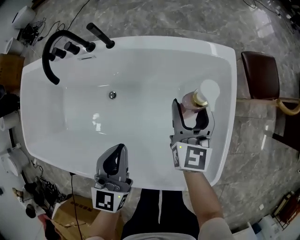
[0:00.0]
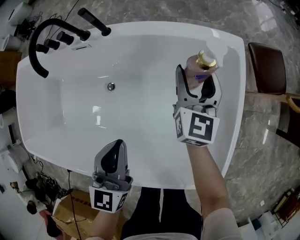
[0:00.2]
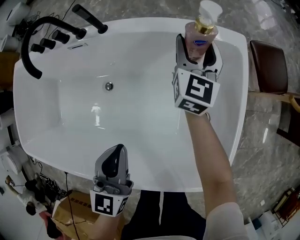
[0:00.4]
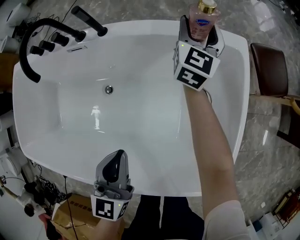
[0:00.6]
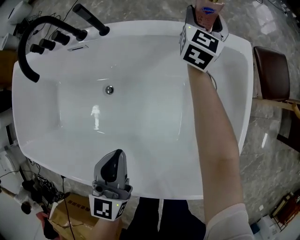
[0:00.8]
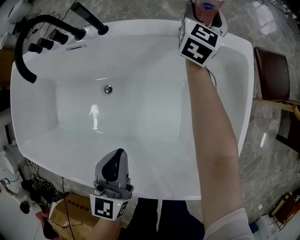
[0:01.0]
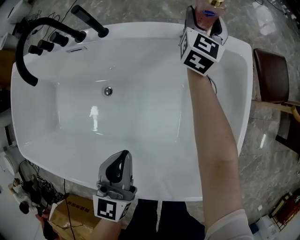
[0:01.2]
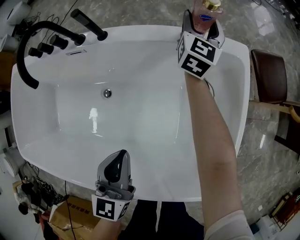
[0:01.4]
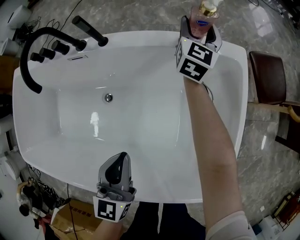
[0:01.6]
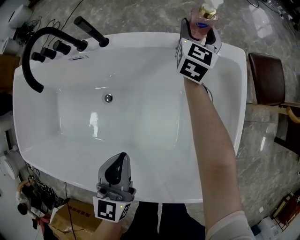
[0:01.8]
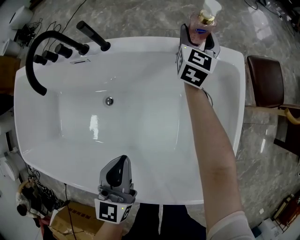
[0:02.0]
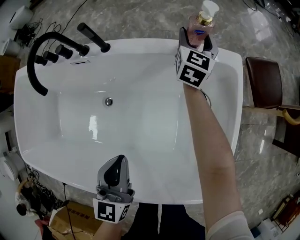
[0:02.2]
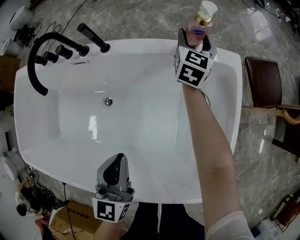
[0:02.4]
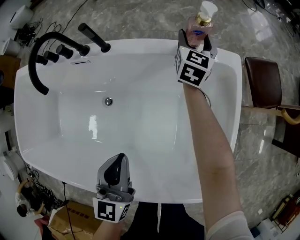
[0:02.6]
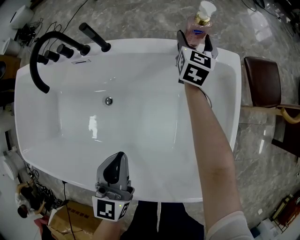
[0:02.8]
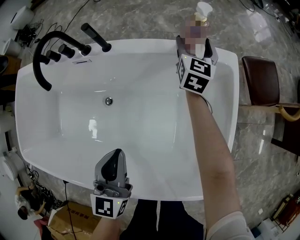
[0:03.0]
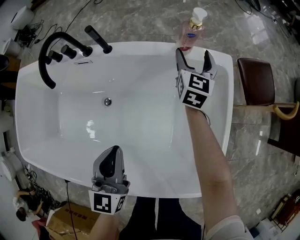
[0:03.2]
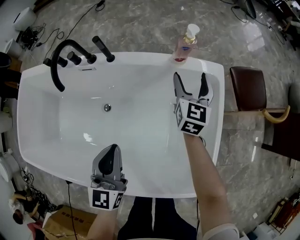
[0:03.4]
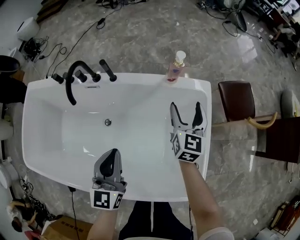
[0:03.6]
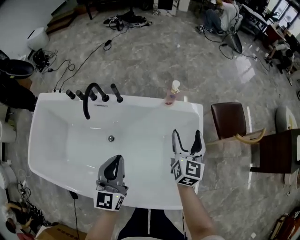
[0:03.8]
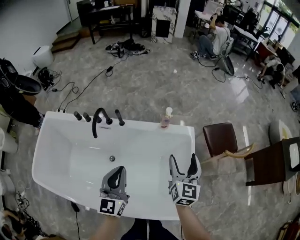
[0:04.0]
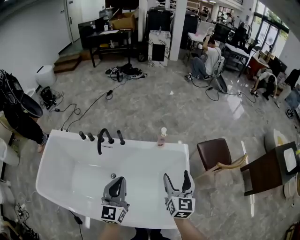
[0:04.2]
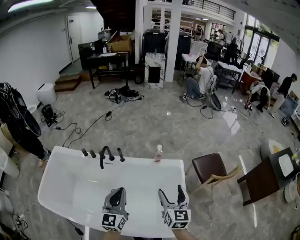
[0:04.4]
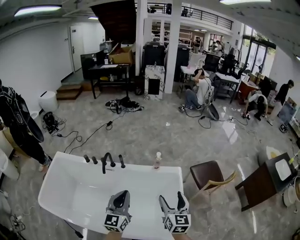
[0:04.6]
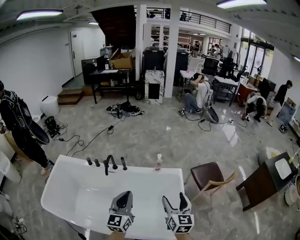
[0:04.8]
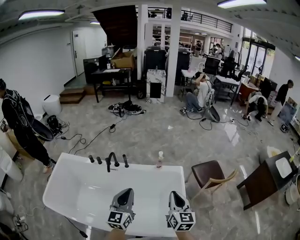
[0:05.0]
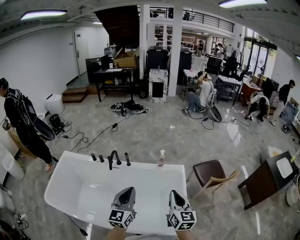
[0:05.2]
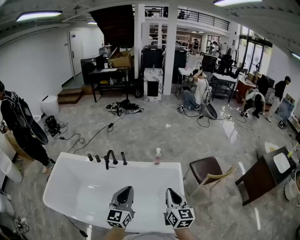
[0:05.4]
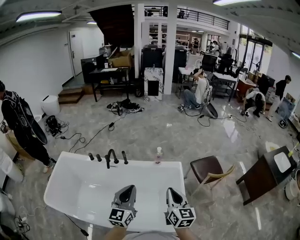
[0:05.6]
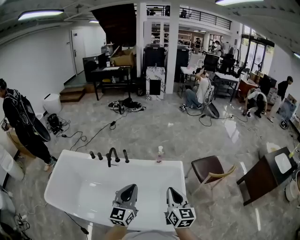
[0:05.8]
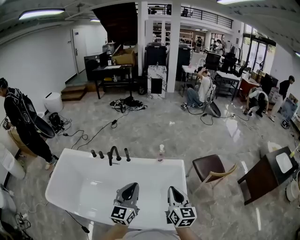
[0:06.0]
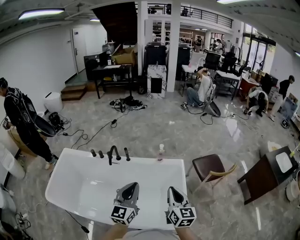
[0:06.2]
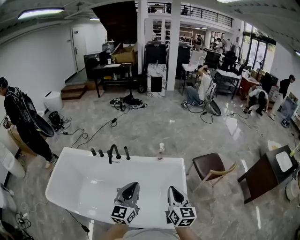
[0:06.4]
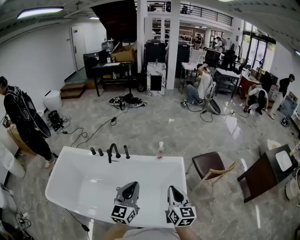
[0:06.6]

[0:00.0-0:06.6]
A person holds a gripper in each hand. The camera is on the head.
0:00.0 to 0:01.6: The right gripper is displaced forward by approximately 25 cm; the left gripper travels downward by approximately 5 cm.
0:01.6 to 0:03.2: The right gripper shifts roughly 5 cm backward.
0:03.2 to 0:05.0: The left gripper is displaced upward by some 40 cm; the right gripper goes about 60 cm upward and backward, and closes up.
0:05.0 to 0:06.6: The grippers make only small movements.

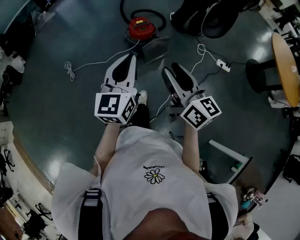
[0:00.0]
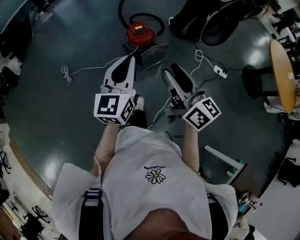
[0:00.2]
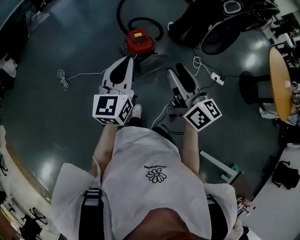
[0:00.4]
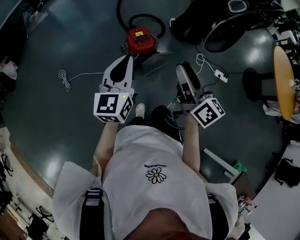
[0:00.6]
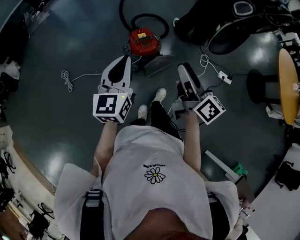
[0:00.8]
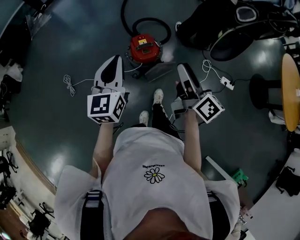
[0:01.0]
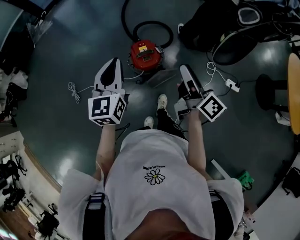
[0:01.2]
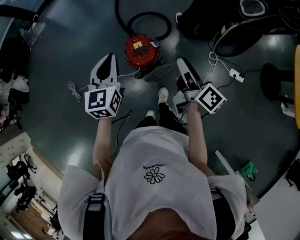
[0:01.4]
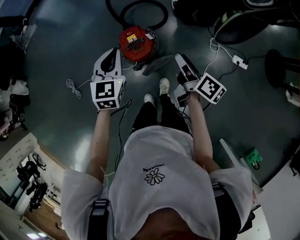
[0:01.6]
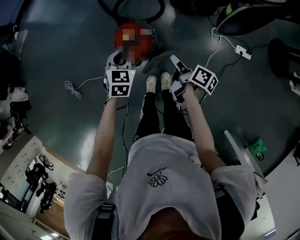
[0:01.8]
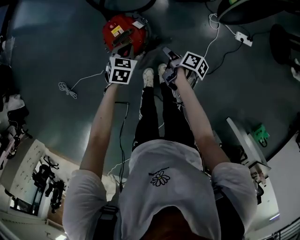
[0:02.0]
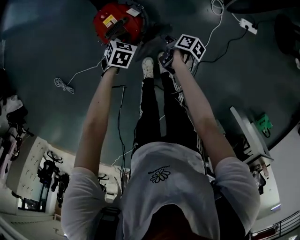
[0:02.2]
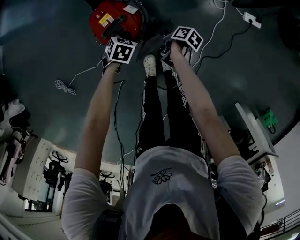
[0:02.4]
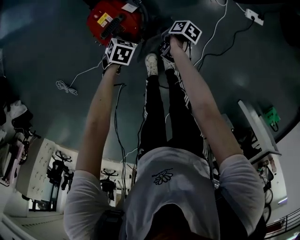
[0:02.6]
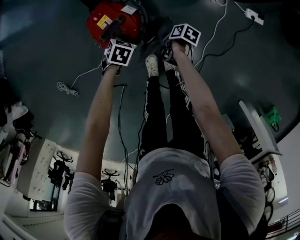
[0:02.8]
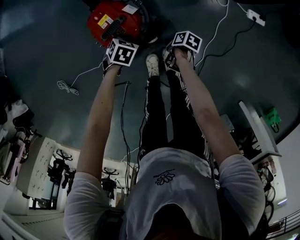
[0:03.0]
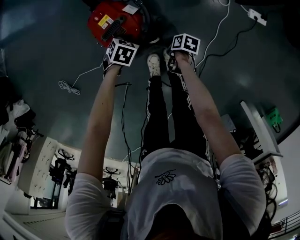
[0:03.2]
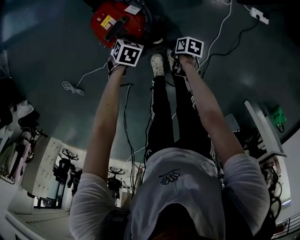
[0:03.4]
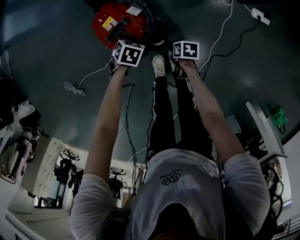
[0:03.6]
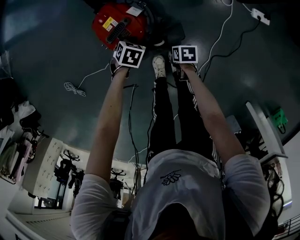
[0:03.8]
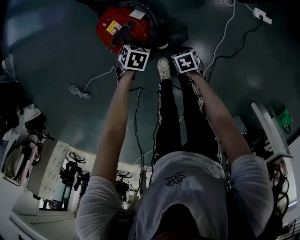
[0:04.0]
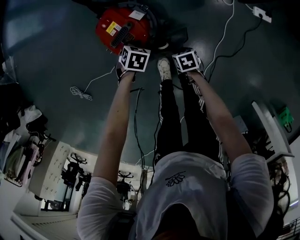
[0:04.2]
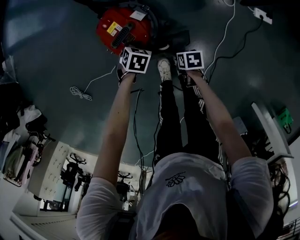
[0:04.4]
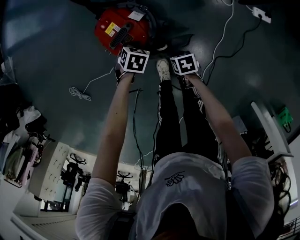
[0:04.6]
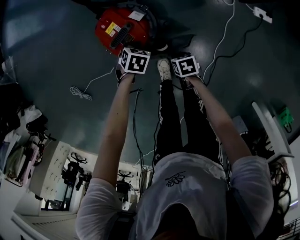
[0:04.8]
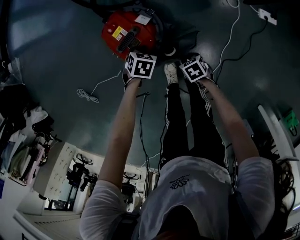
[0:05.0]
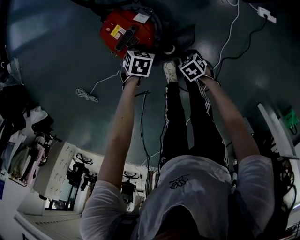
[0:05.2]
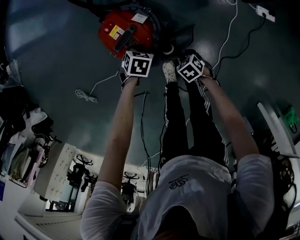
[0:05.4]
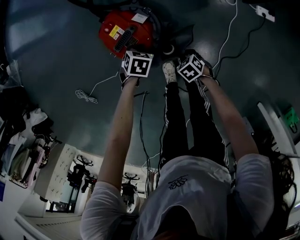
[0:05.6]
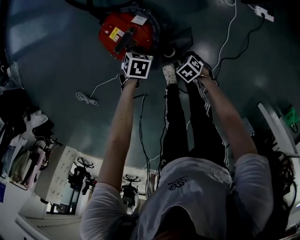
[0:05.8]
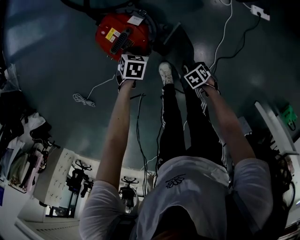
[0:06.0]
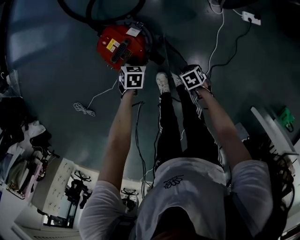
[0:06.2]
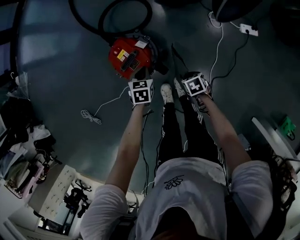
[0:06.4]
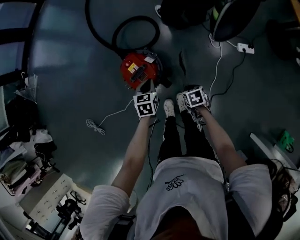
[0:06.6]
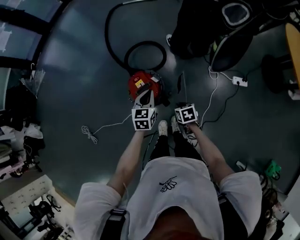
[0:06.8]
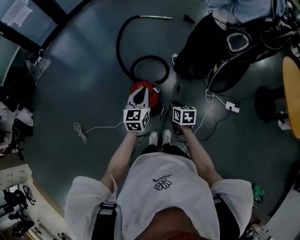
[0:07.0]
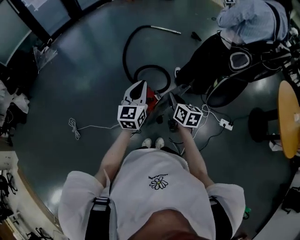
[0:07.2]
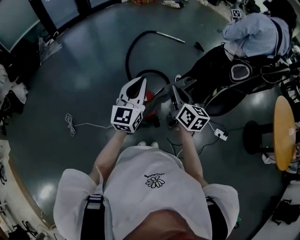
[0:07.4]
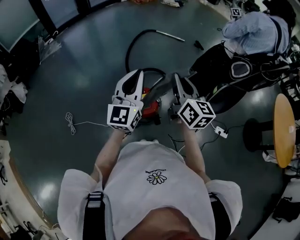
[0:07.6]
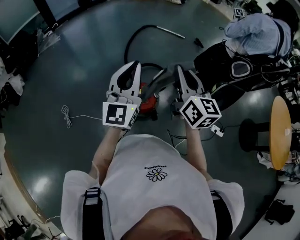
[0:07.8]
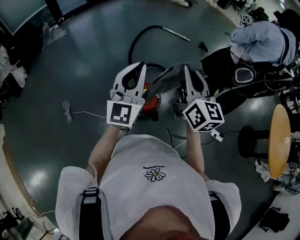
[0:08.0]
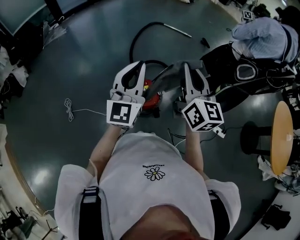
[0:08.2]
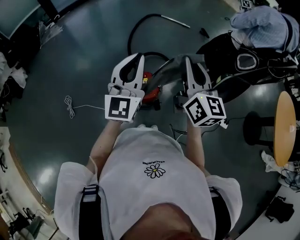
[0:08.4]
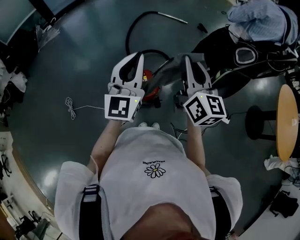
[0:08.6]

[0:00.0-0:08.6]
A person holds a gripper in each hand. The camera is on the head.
0:00.0 to 0:01.4: The pair of grippers is taken forward, approximately 40 cm. The right gripper changes its angle by some 40 degrees.
0:01.4 to 0:02.8: The two grippers go about 50 cm downward. The left gripper tilts its fingers approximately 60 degrees downward. The right gripper angles its fingers downward, by roughly 60 degrees, and closes its fingers.
0:02.8 to 0:04.4: The right gripper shifts by some 5 cm, and turns by some 30 degrees.
0:04.4 to 0:05.8: The right gripper rotates around the line of its fingers by about 40 degrees, counterclockwise from behind.
0:05.8 to 0:07.2: Both grippers travel together upward, some 50 cm. The left gripper tilts its fingers roughly 70 degrees upward. The right gripper tips its fingers upward by approximately 50 degrees.
0:07.2 to 0:08.6: The right gripper travels upward by approximately 25 cm, and rotates approximately 30 degrees. Meanwhile the left gripper moves upward, about 15 cm, and turns by some 20 degrees.

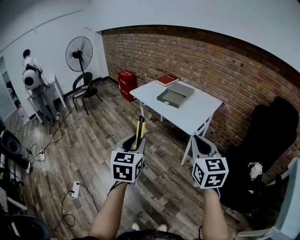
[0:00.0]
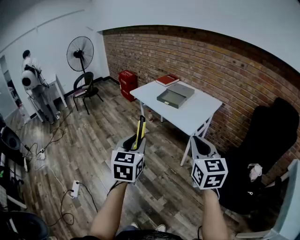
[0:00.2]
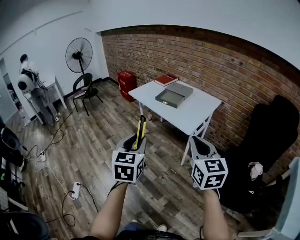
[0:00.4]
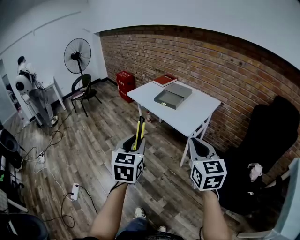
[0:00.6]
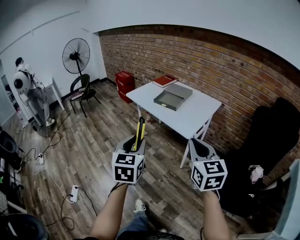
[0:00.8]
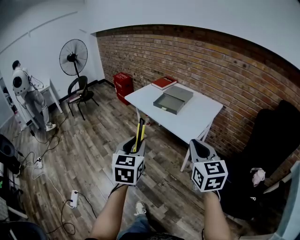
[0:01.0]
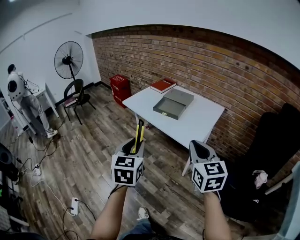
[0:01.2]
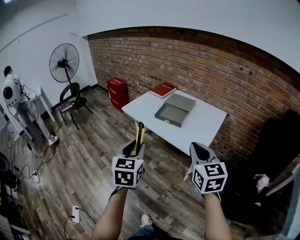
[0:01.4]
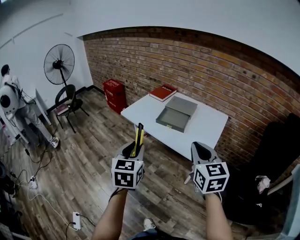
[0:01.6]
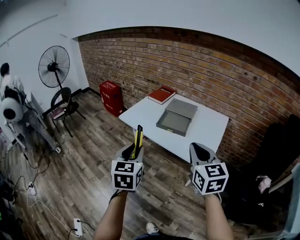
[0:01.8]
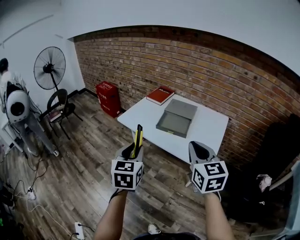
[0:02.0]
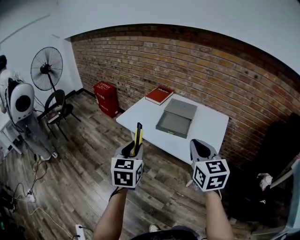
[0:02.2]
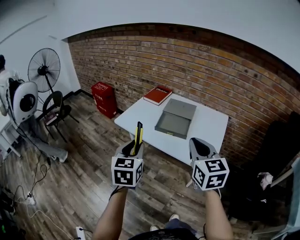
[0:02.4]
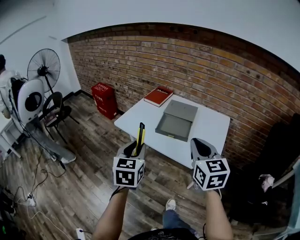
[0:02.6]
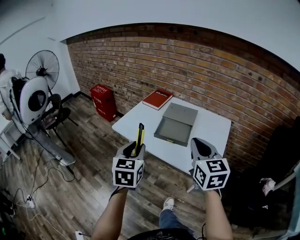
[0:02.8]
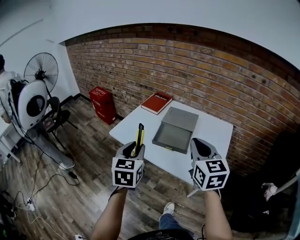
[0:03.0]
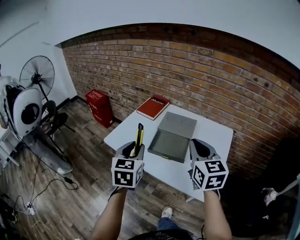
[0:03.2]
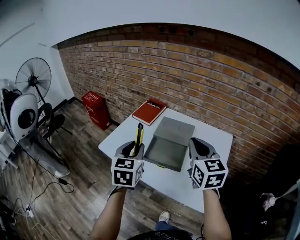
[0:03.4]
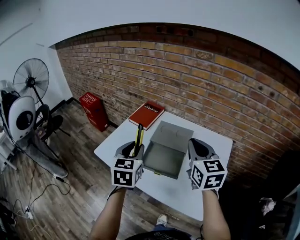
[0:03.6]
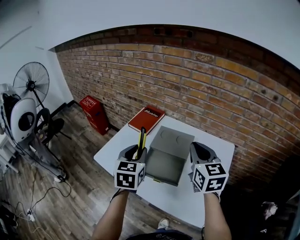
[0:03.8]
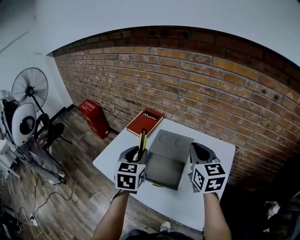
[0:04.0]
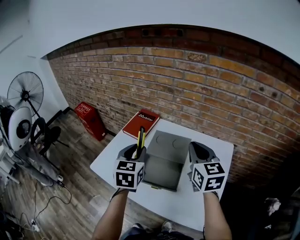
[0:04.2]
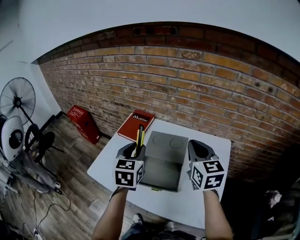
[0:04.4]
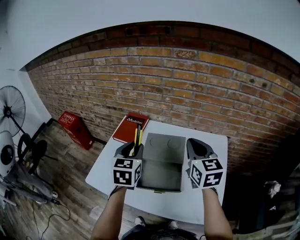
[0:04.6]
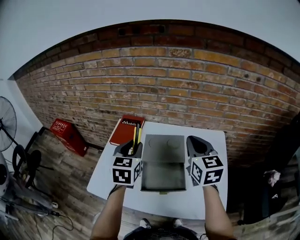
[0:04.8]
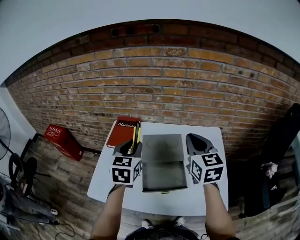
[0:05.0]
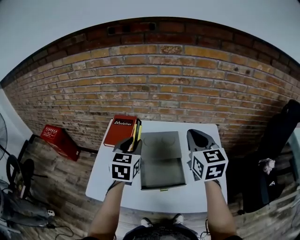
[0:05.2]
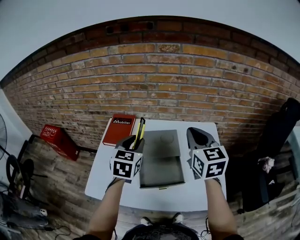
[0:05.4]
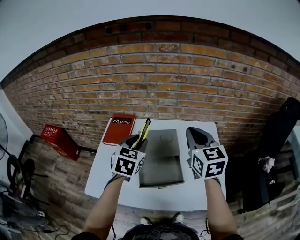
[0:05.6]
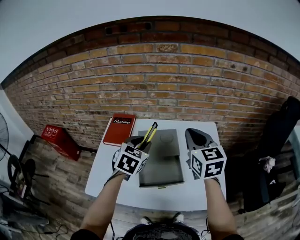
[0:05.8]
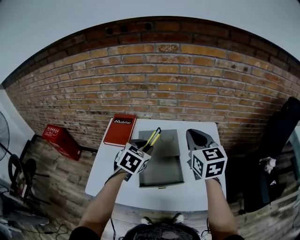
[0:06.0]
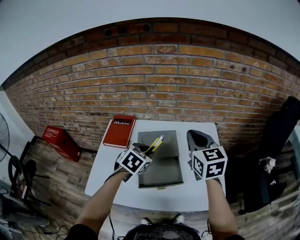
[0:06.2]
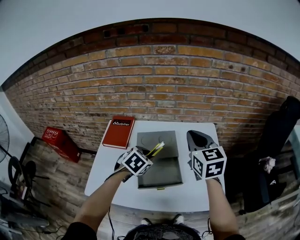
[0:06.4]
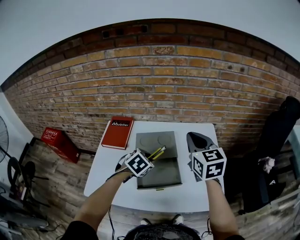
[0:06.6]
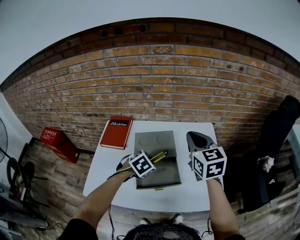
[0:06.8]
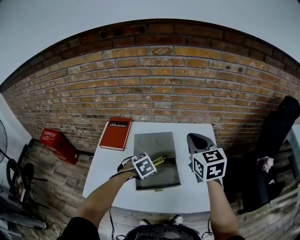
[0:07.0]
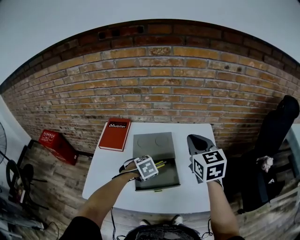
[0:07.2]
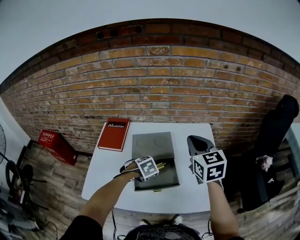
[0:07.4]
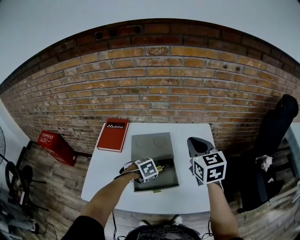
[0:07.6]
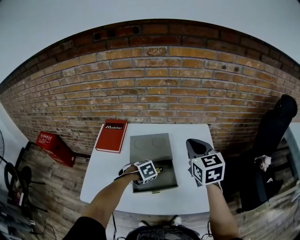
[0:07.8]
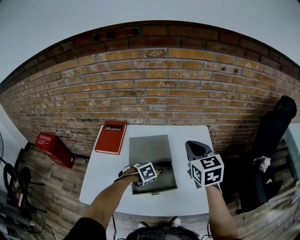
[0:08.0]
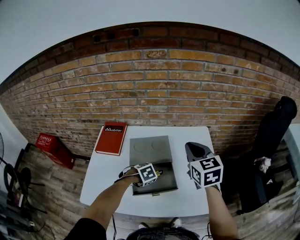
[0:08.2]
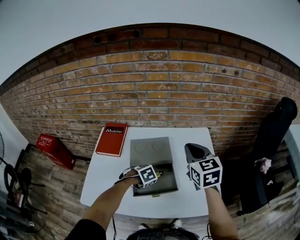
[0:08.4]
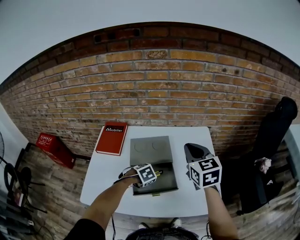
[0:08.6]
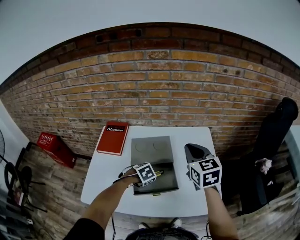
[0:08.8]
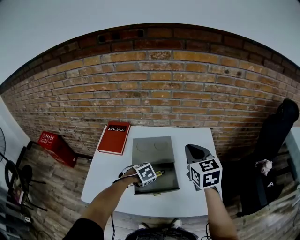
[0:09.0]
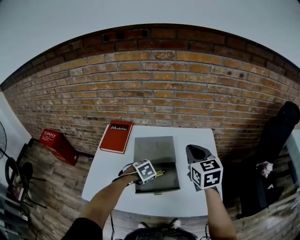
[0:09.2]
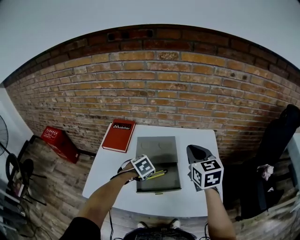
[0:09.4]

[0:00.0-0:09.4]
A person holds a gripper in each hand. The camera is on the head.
0:00.0 to 0:01.6: The two grippers go some 25 cm forward.
0:01.6 to 0:03.2: Both grippers move forward, roughly 30 cm.
0:03.2 to 0:04.8: Both grippers move forward, some 25 cm.
0:04.8 to 0:06.2: The left gripper travels downward and to the right by roughly 15 cm, and swivels approximately 40 degrees.
0:06.2 to 0:07.8: The left gripper moves downward, some 15 cm, and angles its fingers downward, by some 40 degrees.
0:07.8 to 0:09.4: The left gripper moves upward, roughly 5 cm.
